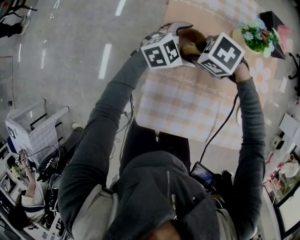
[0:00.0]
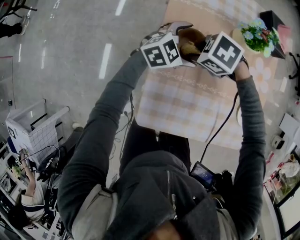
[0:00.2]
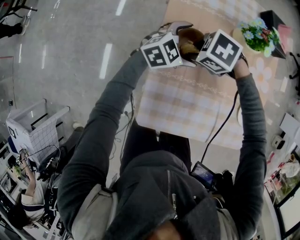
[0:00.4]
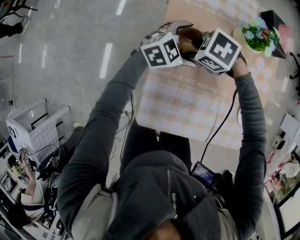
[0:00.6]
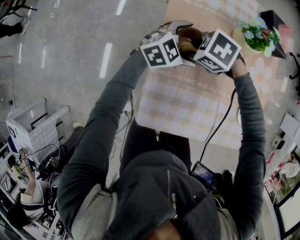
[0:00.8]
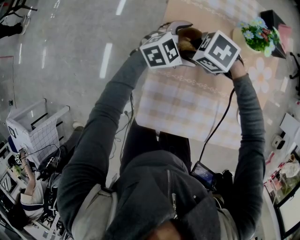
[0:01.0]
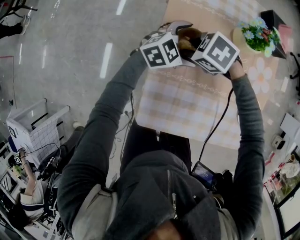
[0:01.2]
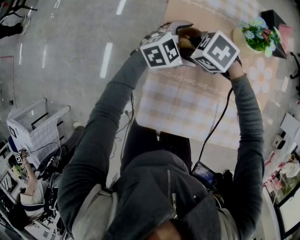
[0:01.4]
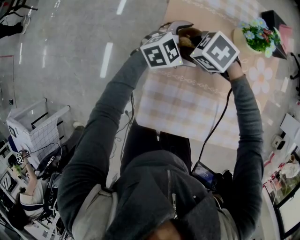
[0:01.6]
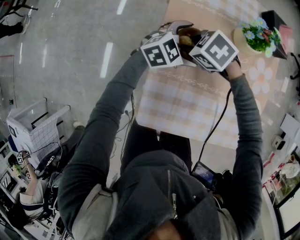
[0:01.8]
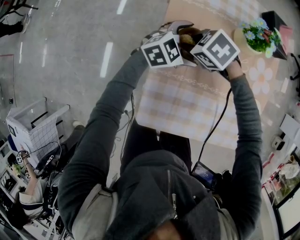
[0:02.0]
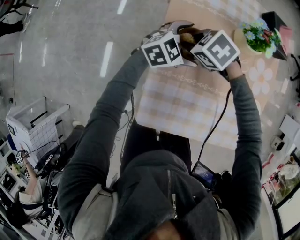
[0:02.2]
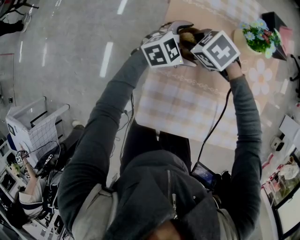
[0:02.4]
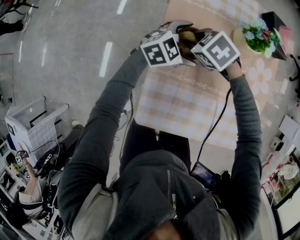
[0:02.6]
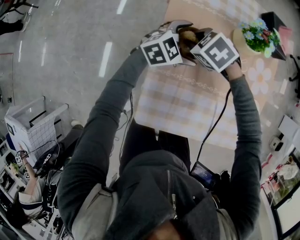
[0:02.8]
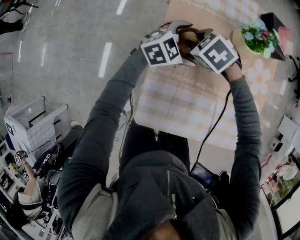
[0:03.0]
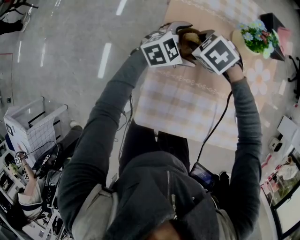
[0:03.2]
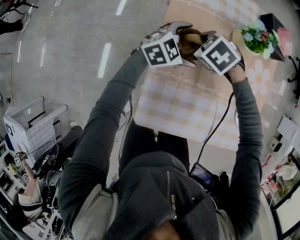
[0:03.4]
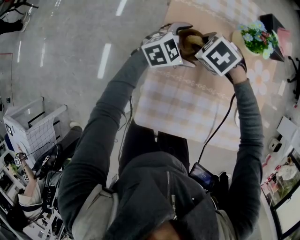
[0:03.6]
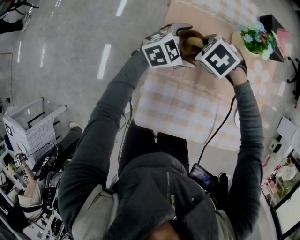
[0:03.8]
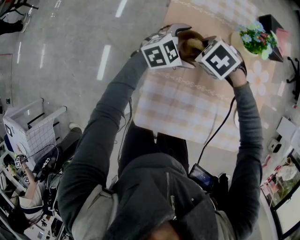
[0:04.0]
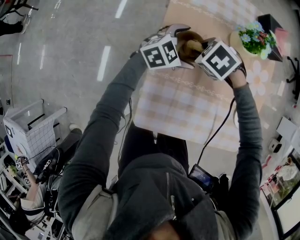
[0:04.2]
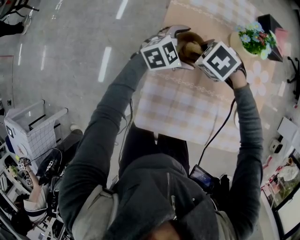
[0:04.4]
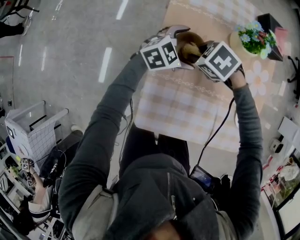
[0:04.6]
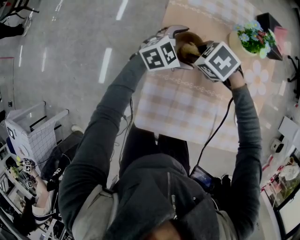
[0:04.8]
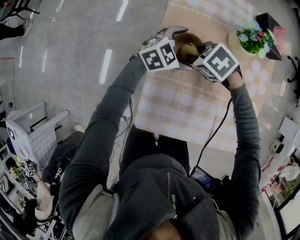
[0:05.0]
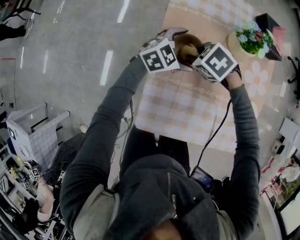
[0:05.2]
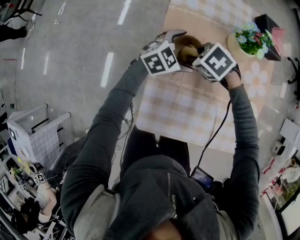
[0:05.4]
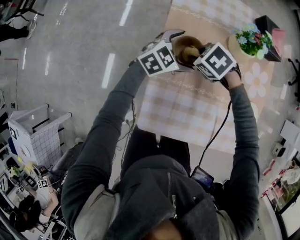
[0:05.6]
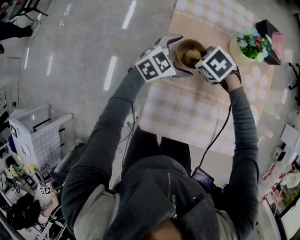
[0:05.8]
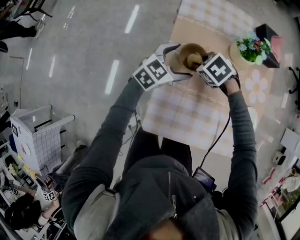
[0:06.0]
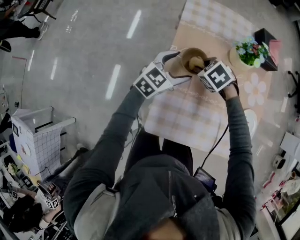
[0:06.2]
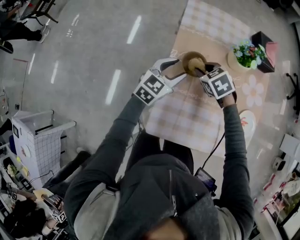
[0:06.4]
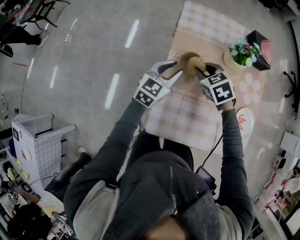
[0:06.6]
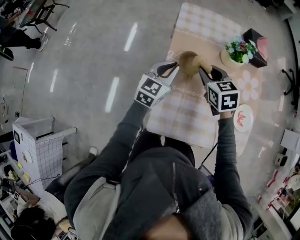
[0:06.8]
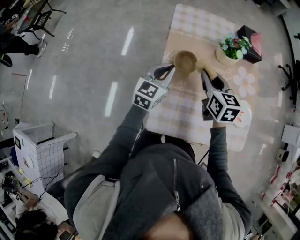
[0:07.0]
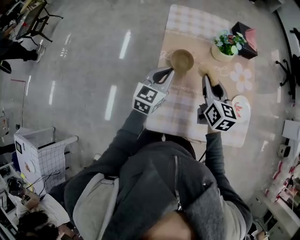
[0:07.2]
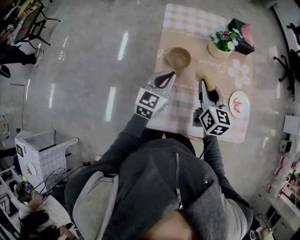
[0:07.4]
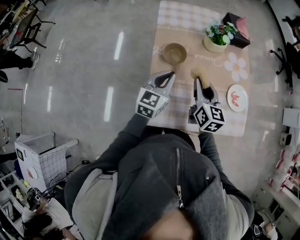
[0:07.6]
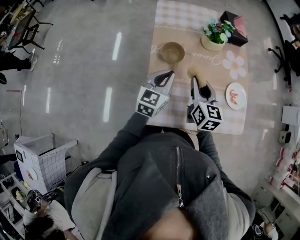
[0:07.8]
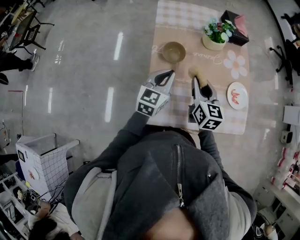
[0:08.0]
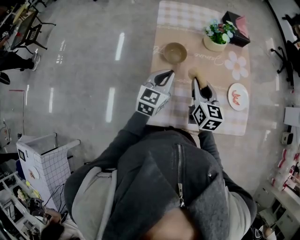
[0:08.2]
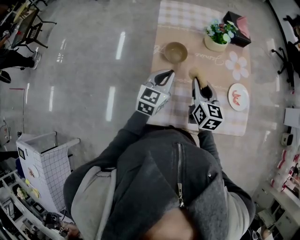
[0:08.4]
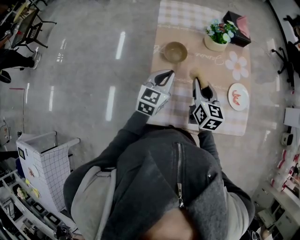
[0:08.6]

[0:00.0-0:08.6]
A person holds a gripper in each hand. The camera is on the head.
0:00.0 to 0:05.8: The grippers stay close to where they were, moving slightly.
0:05.8 to 0:07.2: The left gripper goes roughly 10 cm upward, changes its angle by some 30 degrees, and closes, while the right gripper travels upward by some 15 cm, and angles its fingers upward, by approximately 50 degrees.
0:07.2 to 0:08.6: The right gripper changes place by roughly 5 cm; the left gripper changes place by some 5 cm.

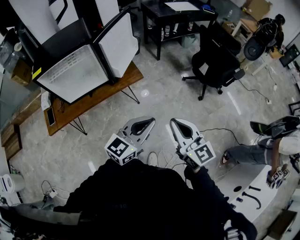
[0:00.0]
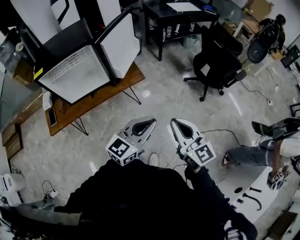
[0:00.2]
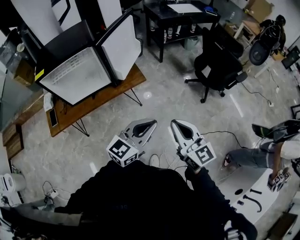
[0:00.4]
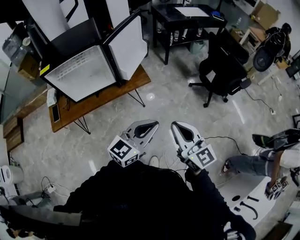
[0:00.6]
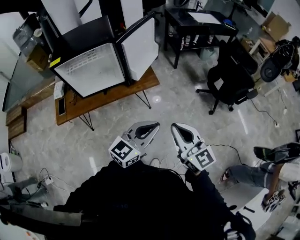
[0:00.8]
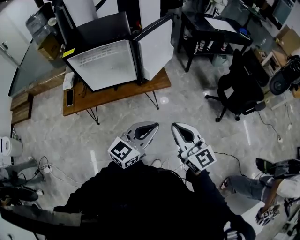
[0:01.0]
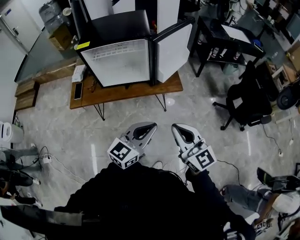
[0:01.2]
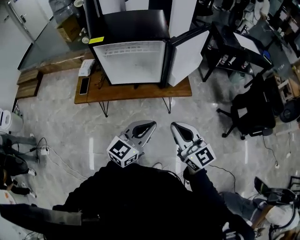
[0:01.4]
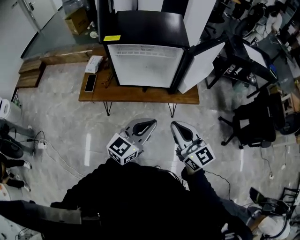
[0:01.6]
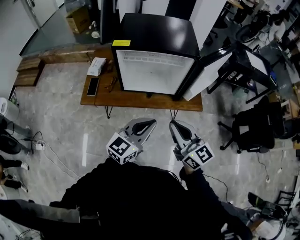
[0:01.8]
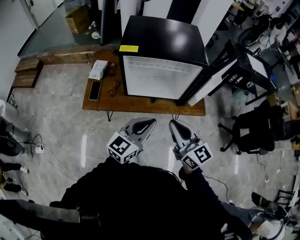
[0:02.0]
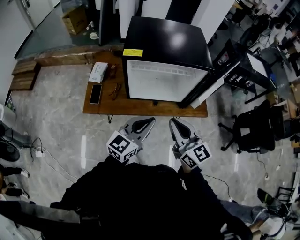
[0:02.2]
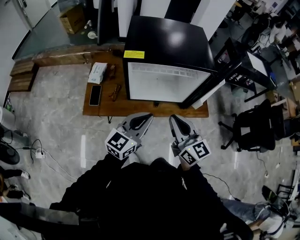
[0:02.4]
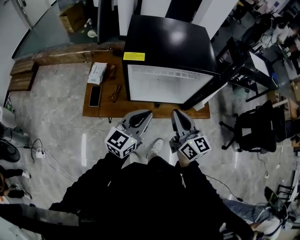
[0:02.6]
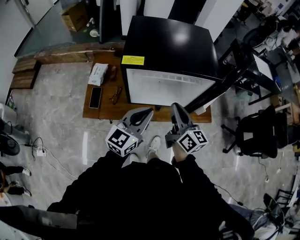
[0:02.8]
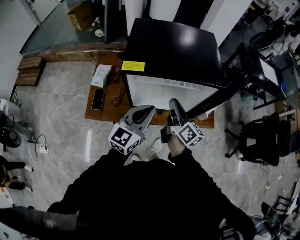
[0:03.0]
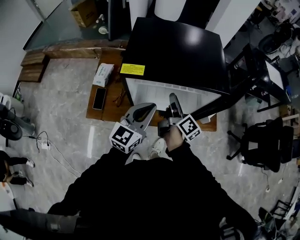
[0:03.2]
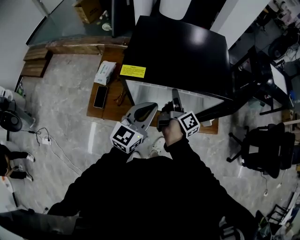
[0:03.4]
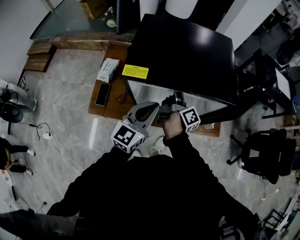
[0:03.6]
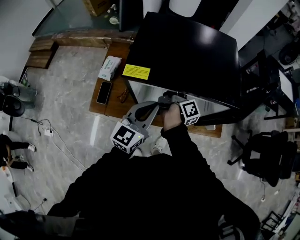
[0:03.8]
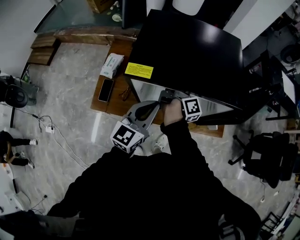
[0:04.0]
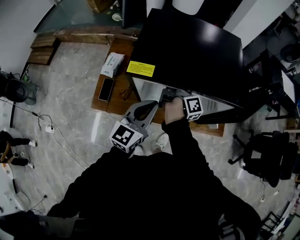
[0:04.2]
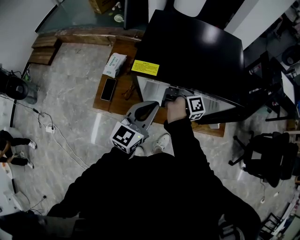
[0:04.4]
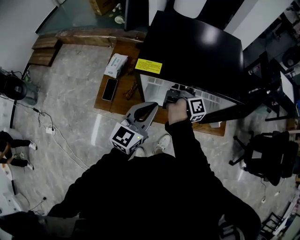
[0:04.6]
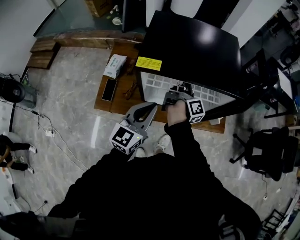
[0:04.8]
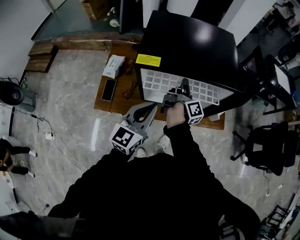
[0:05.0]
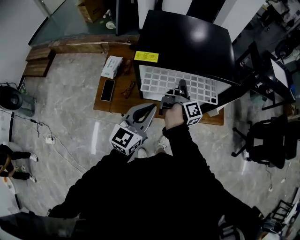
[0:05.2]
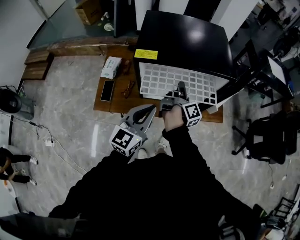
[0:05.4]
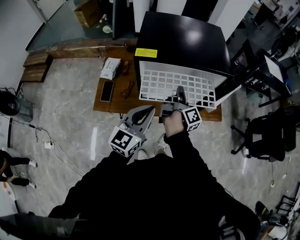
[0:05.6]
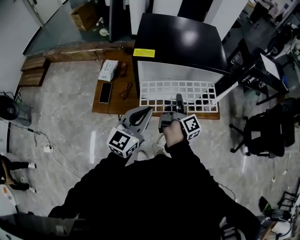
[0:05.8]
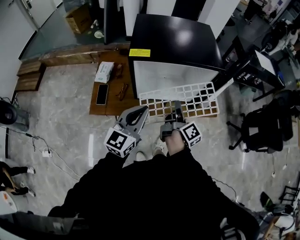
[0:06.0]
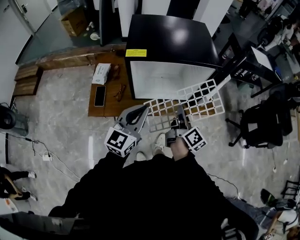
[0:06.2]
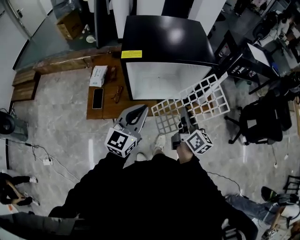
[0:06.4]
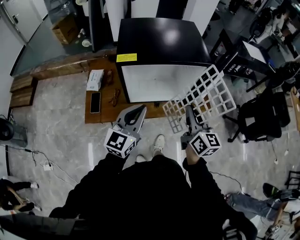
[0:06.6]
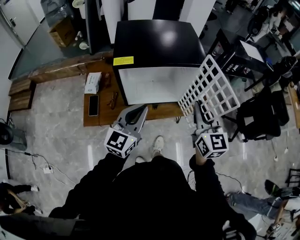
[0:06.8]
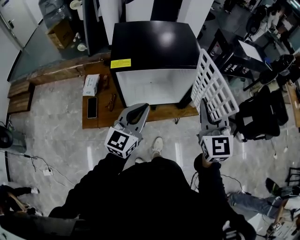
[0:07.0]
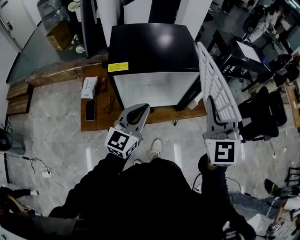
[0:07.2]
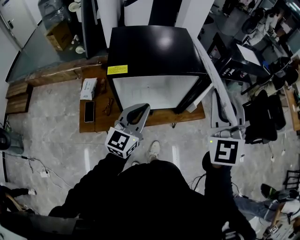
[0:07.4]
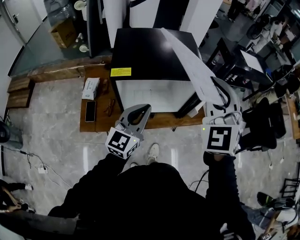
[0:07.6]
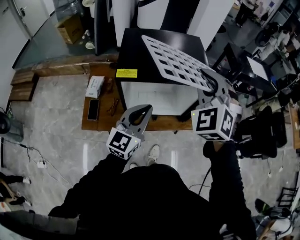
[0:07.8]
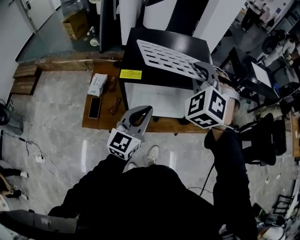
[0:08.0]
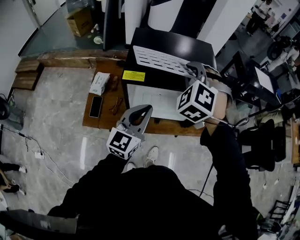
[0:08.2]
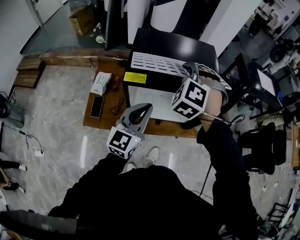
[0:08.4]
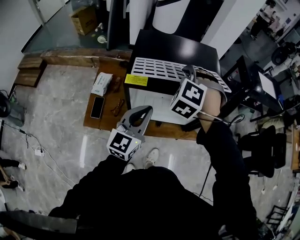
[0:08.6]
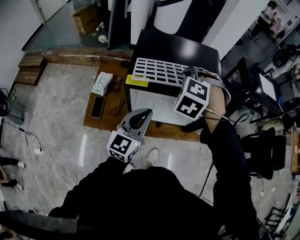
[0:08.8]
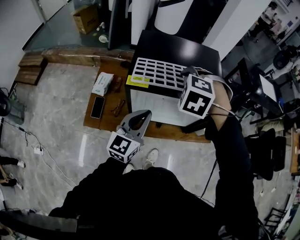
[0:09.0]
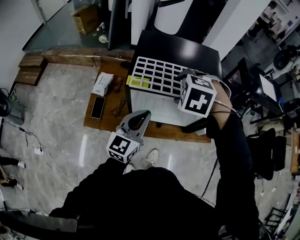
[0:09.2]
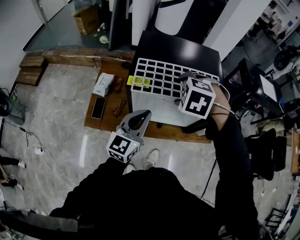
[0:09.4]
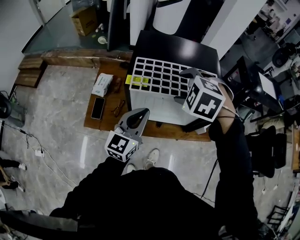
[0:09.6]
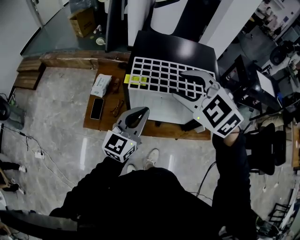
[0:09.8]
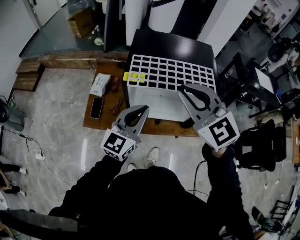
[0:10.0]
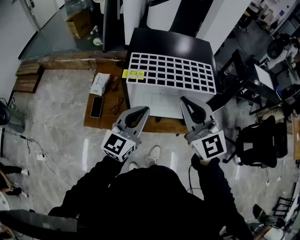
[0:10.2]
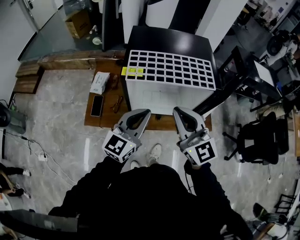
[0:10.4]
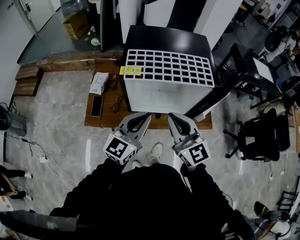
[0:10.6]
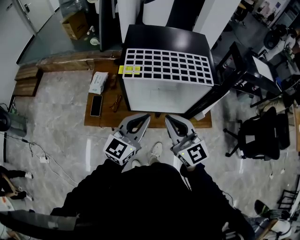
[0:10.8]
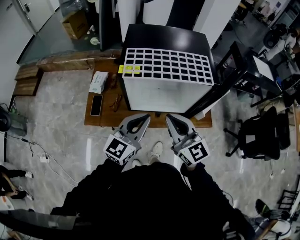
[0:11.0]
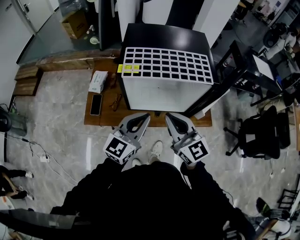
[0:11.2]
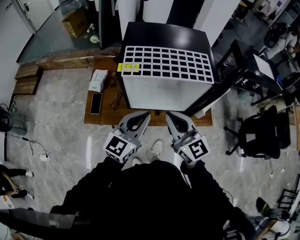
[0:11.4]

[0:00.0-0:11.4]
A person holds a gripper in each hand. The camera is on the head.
0:00.0 to 0:01.4: The right gripper moves approximately 25 cm, and rotates roughly 30 degrees, while the left gripper moves approximately 20 cm, and changes its angle by about 30 degrees.
0:01.4 to 0:02.8: Both grippers move forward and to the left, roughly 35 cm. The right gripper turns by some 30 degrees.
0:02.8 to 0:04.2: The left gripper is displaced forward by about 10 cm. Meanwhile the right gripper shifts some 25 cm forward, twists about 60 degrees clockwise, seen from behind, and opens, then closes once more.
0:04.2 to 0:05.6: Both grippers move backward, about 15 cm.
0:05.6 to 0:07.2: The left gripper changes place by roughly 10 cm, while the right gripper travels upward and to the right by roughly 30 cm, and rotates around the line of its fingers by roughly 120 degrees, counterclockwise from behind.
0:07.2 to 0:08.6: The left gripper is displaced forward and to the left by roughly 10 cm. Meanwhile the right gripper travels forward, to the left and downward by about 30 cm, and twists approximately 50 degrees counterclockwise, seen from behind.
0:08.6 to 0:10.0: The right gripper travels backward and upward by some 15 cm, turns by roughly 60 degrees, and opens, then closes once more.
0:10.0 to 0:11.4: The right gripper is displaced downward and backward by roughly 15 cm, and rotates some 30 degrees, while the left gripper shifts roughly 5 cm backward.

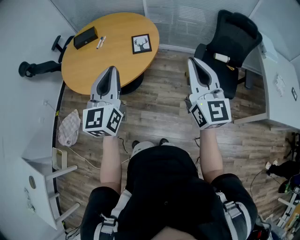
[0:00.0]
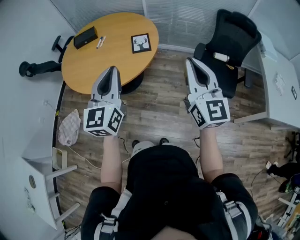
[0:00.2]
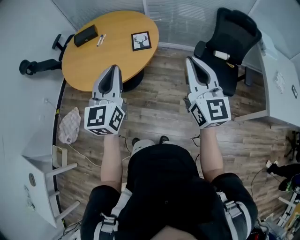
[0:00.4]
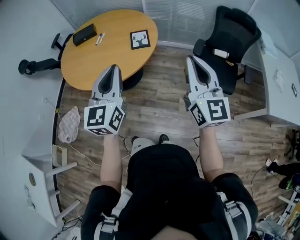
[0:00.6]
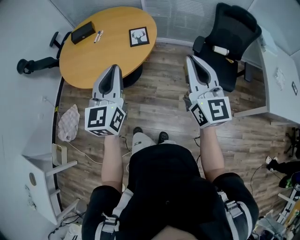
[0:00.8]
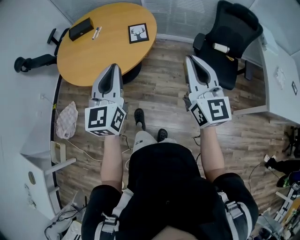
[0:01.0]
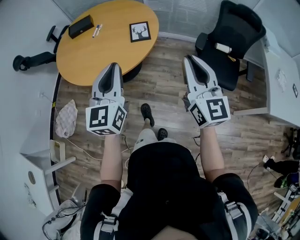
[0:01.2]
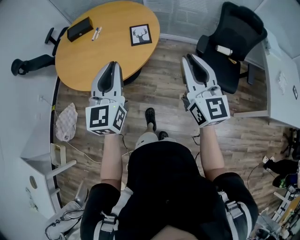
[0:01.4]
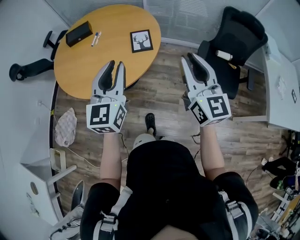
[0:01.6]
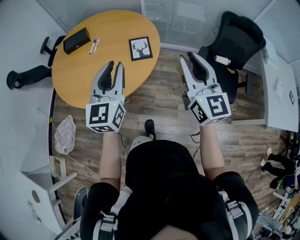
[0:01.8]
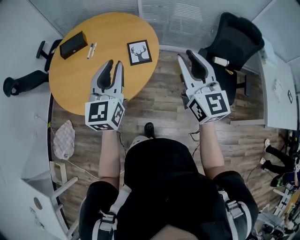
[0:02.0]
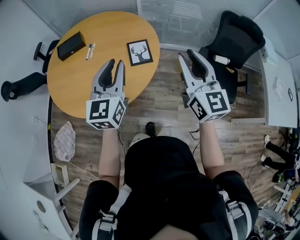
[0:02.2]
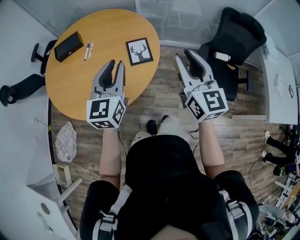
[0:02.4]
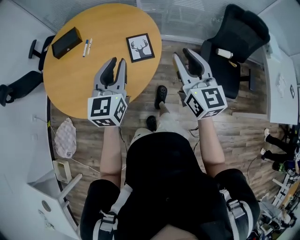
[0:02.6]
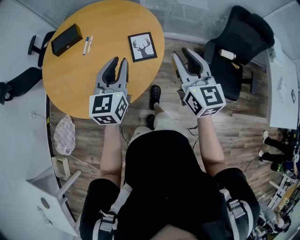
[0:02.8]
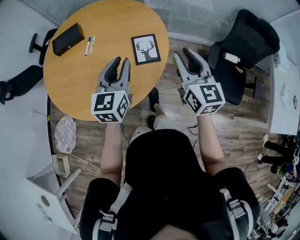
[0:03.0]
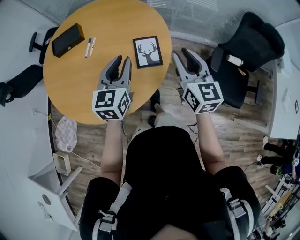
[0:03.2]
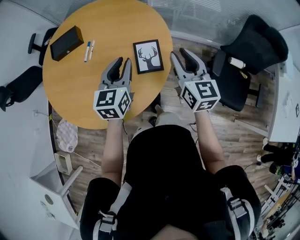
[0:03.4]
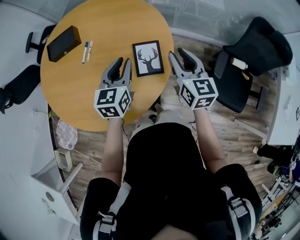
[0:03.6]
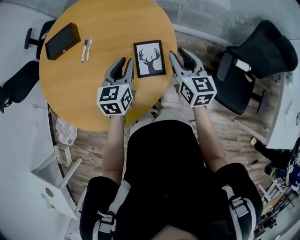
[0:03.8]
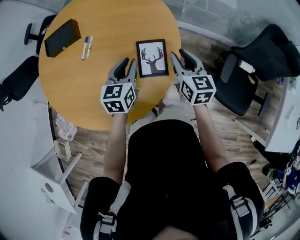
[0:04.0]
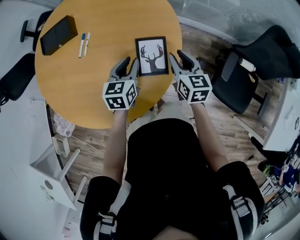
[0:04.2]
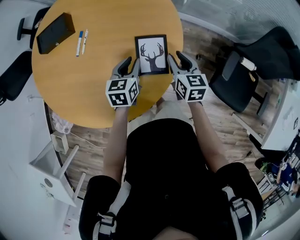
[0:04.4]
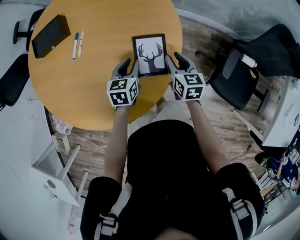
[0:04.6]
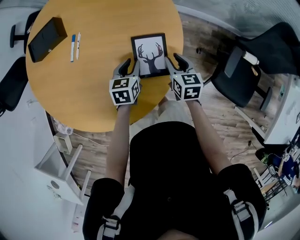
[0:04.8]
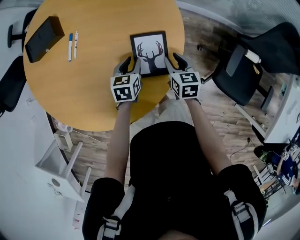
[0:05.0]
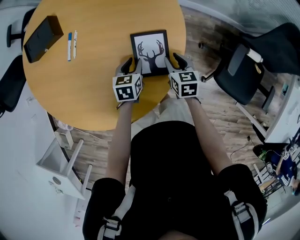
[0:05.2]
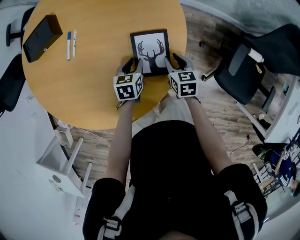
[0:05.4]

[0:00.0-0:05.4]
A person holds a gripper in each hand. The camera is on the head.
0:00.0 to 0:01.4: Both grippers move forward, some 5 cm.
0:01.4 to 0:02.8: The grippers both shift forward by about 30 cm.
0:02.8 to 0:04.0: The two grippers go roughly 30 cm forward and downward. The left gripper rotates about 20 degrees, while the right gripper turns by roughly 20 degrees.
0:04.0 to 0:05.4: Both grippers move downward, about 20 cm. The right gripper changes its angle by roughly 20 degrees. The left gripper rotates some 20 degrees.
